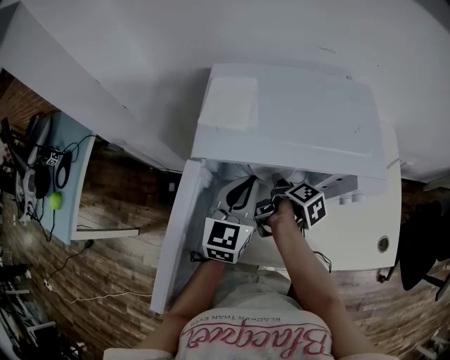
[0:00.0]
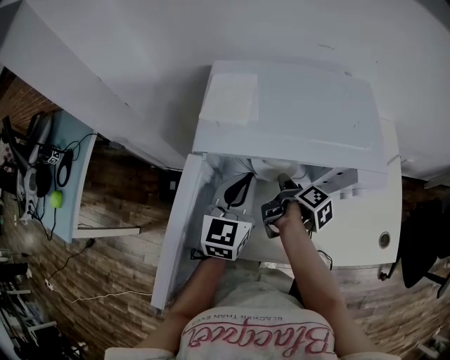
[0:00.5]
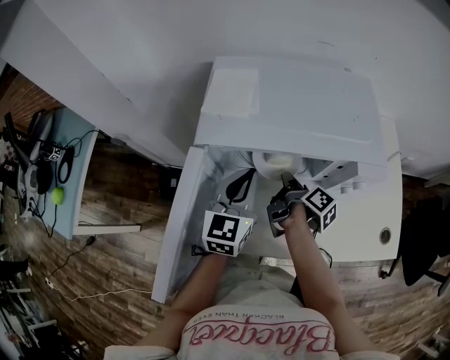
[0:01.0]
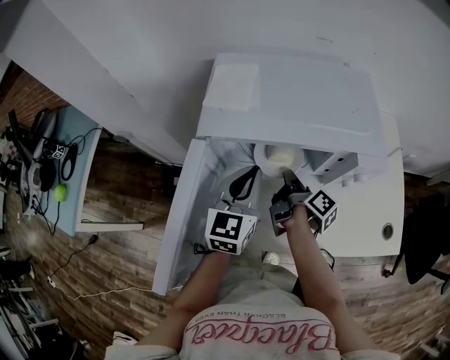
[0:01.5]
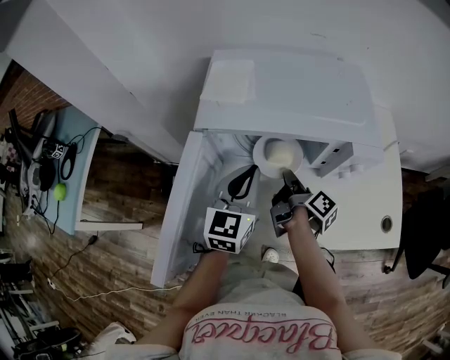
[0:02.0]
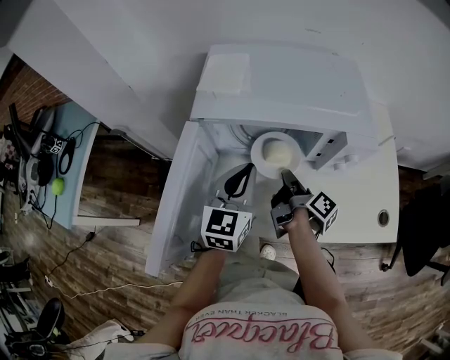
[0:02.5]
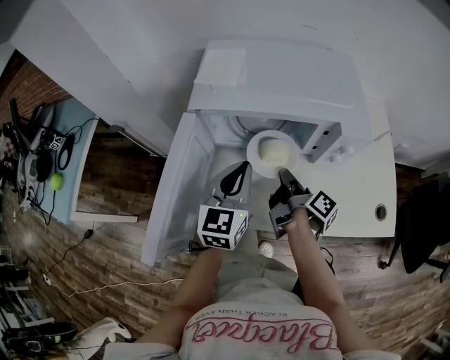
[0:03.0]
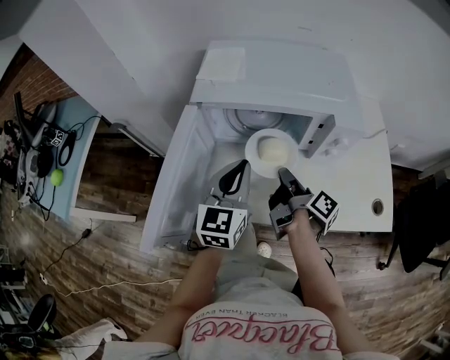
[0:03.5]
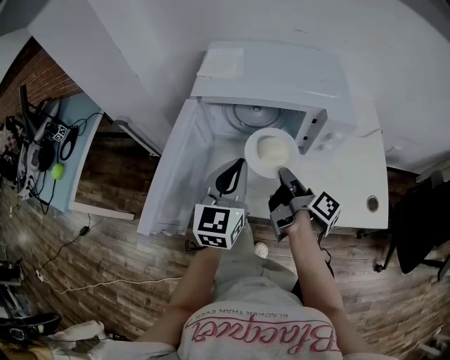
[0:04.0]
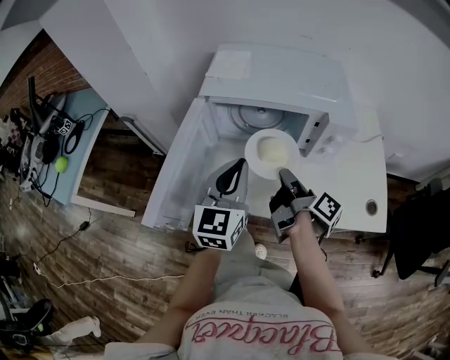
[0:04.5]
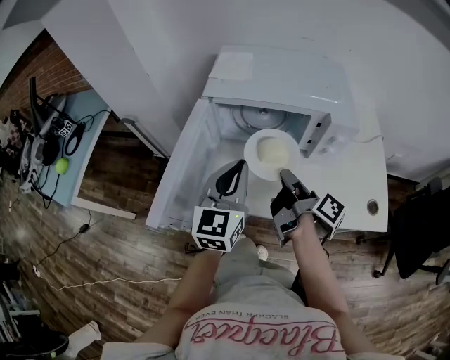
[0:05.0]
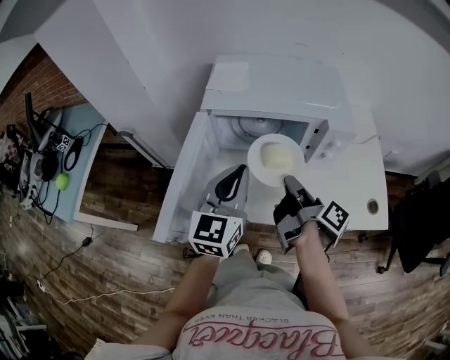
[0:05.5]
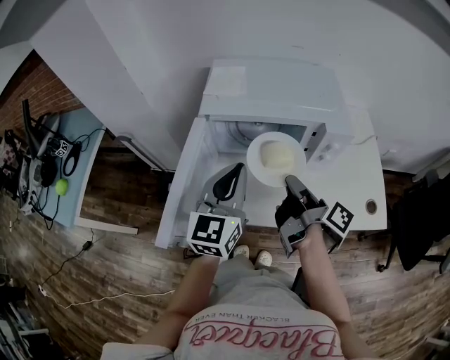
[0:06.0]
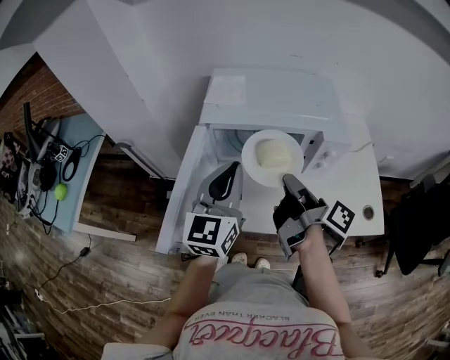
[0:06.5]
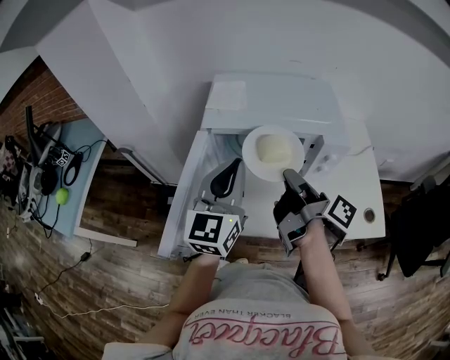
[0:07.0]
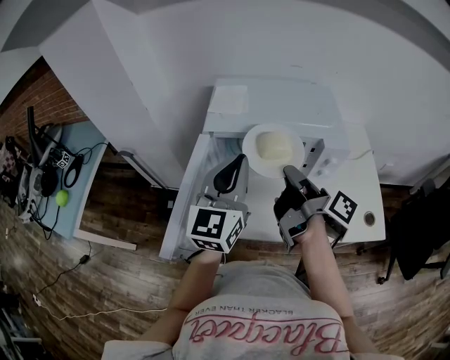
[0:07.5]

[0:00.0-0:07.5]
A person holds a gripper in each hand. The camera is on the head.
0:00.0 to 0:02.0: The right gripper changes place by roughly 5 cm, turns by some 30 degrees, and closes up.
0:02.0 to 0:04.0: The left gripper shifts about 10 cm backward. The right gripper goes approximately 10 cm backward and upward.
0:04.0 to 0:05.5: The right gripper shifts some 5 cm upward.
0:05.5 to 0:07.5: The two grippers go approximately 10 cm upward.

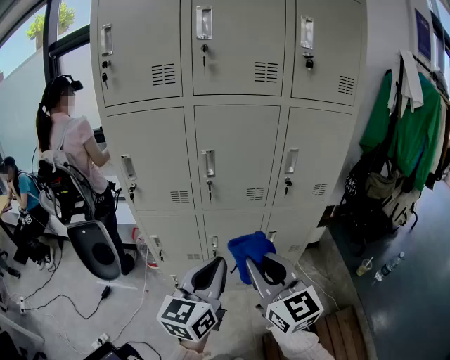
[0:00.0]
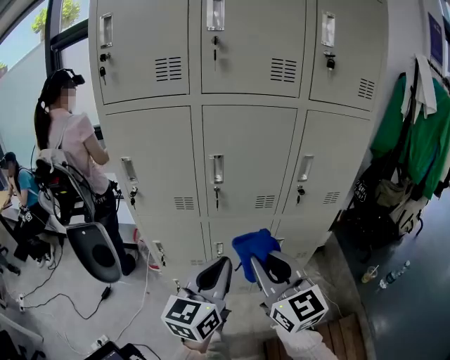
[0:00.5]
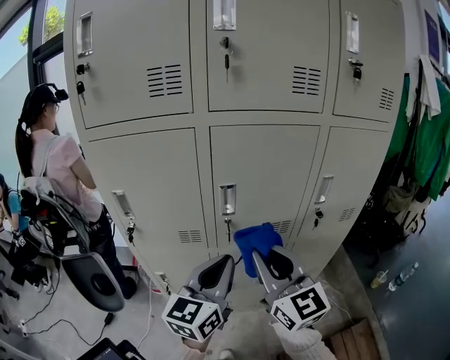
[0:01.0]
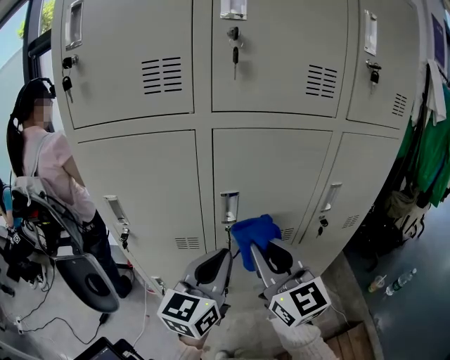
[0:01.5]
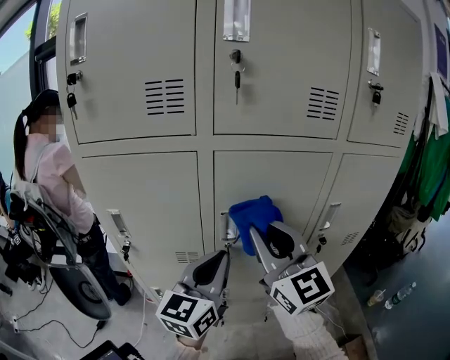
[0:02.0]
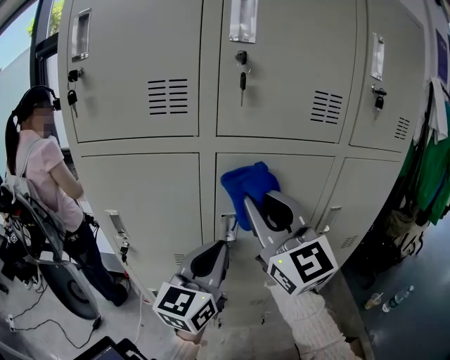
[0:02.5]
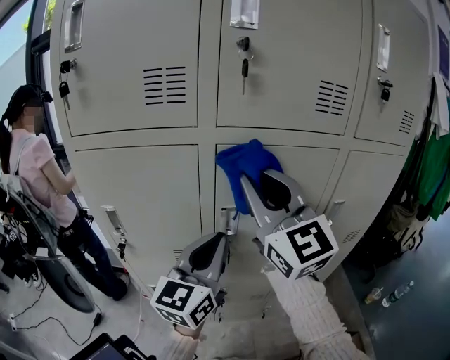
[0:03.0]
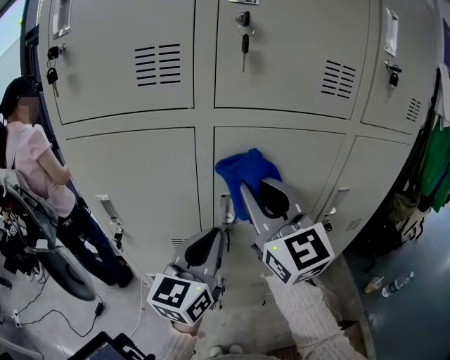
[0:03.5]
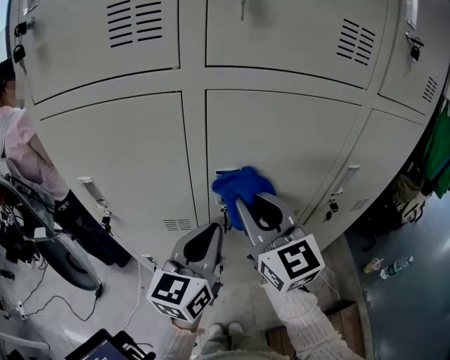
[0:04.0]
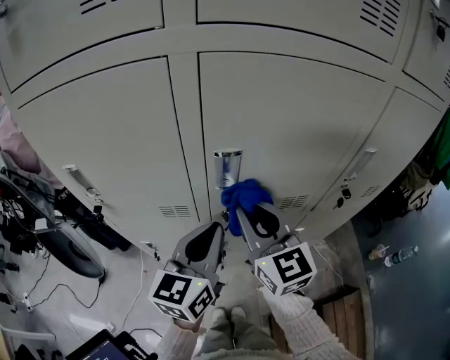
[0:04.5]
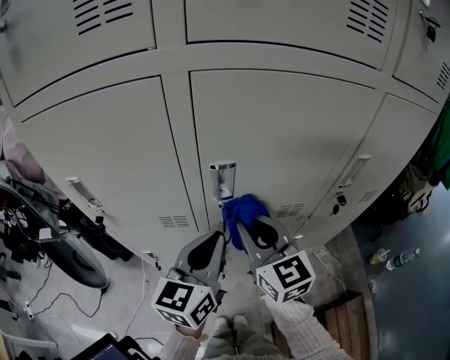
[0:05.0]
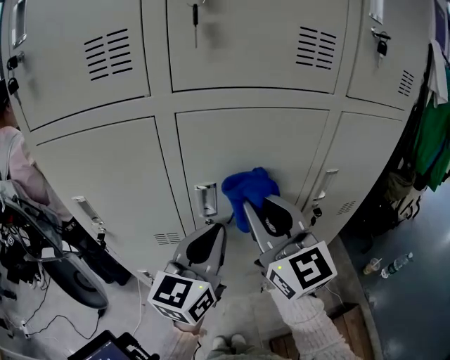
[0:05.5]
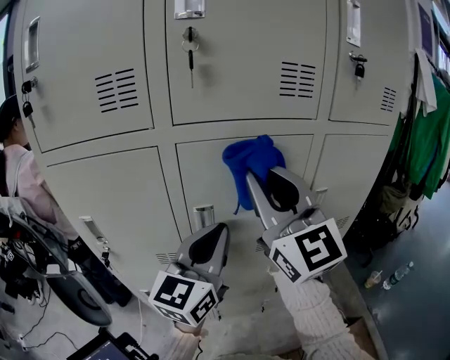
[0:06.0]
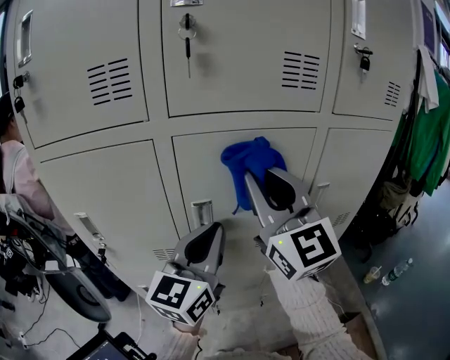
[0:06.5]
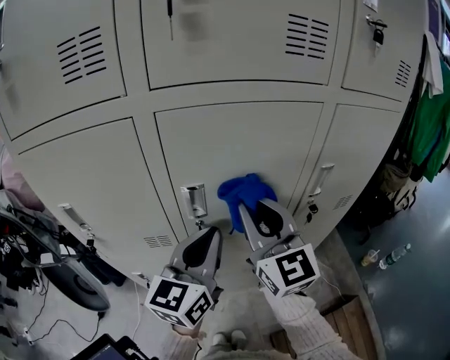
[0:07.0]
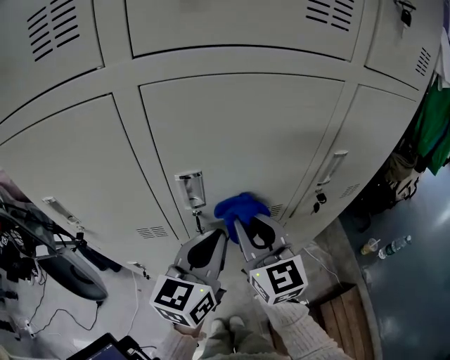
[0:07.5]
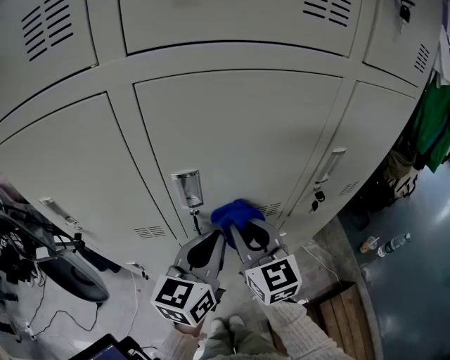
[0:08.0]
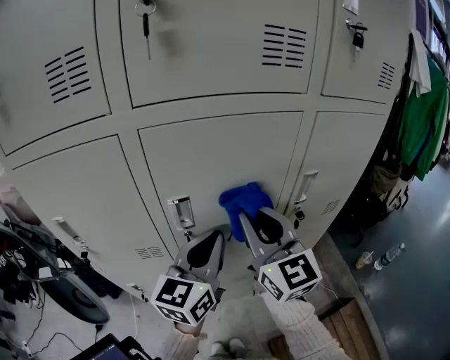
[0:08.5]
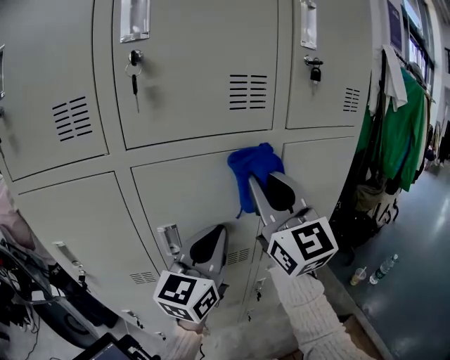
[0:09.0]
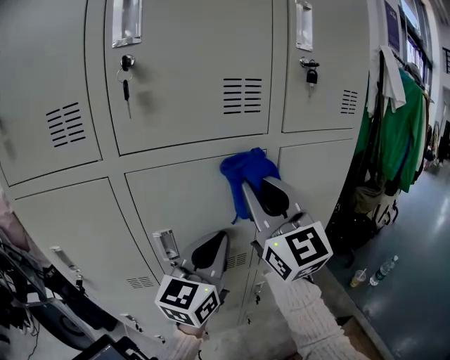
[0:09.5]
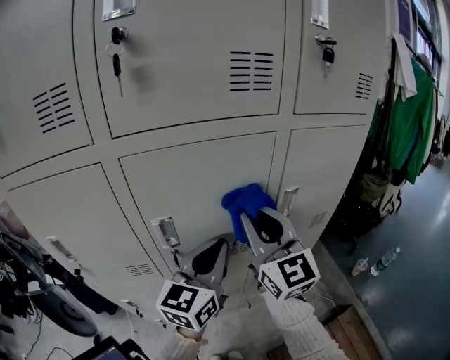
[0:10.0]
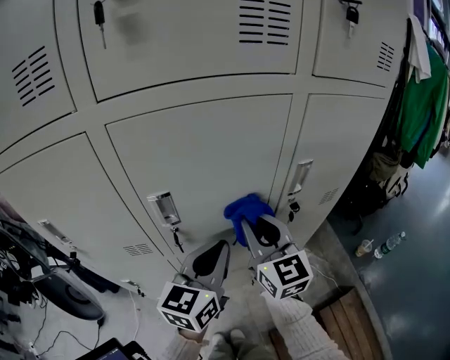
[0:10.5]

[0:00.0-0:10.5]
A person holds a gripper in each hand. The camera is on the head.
0:00.0 to 0:02.0: The right gripper shifts approximately 30 cm forward and upward. Meanwhile the left gripper goes roughly 25 cm forward.
0:02.0 to 0:04.0: The right gripper goes about 10 cm downward and forward, while the left gripper travels downward by approximately 5 cm.
0:04.0 to 0:06.5: Both grippers move upward and to the right, approximately 10 cm.
0:06.5 to 0:08.5: The right gripper goes some 10 cm downward. The left gripper travels downward by approximately 5 cm.
0:08.5 to 0:10.5: The right gripper is displaced downward by roughly 10 cm.

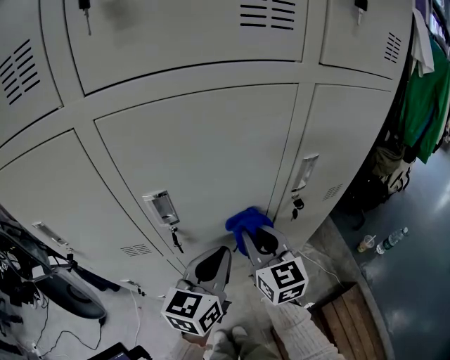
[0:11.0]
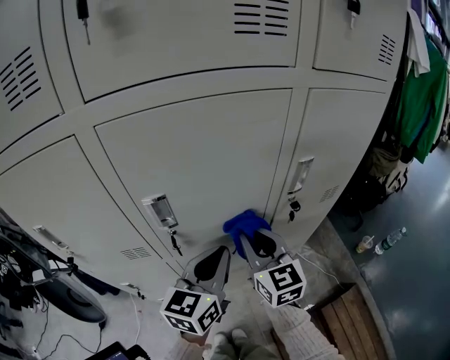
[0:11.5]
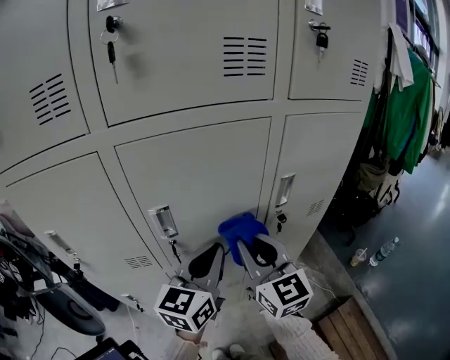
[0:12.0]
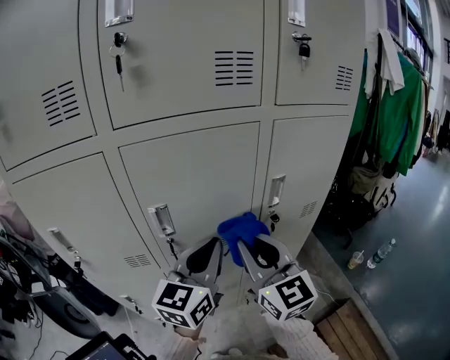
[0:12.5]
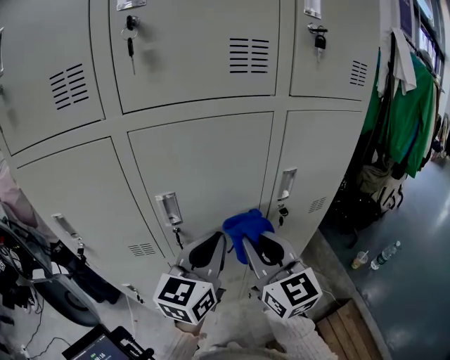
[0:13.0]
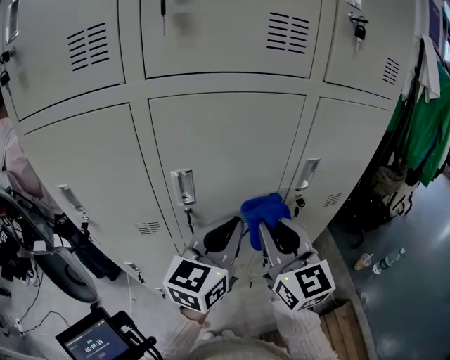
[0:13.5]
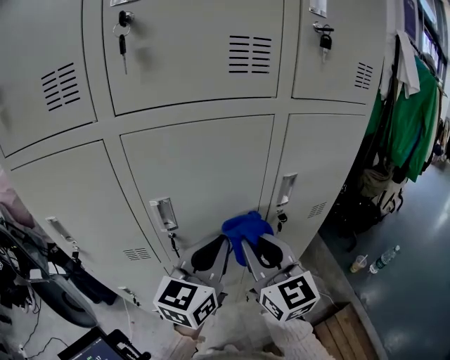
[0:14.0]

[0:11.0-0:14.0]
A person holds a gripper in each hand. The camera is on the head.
0:11.0 to 0:12.5: The left gripper heads upward, covering some 10 cm. The right gripper heads upward and backward, covering about 15 cm.
0:12.5 to 0:14.0: The grippers make only small movements.

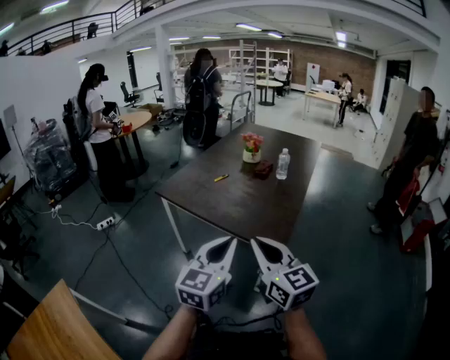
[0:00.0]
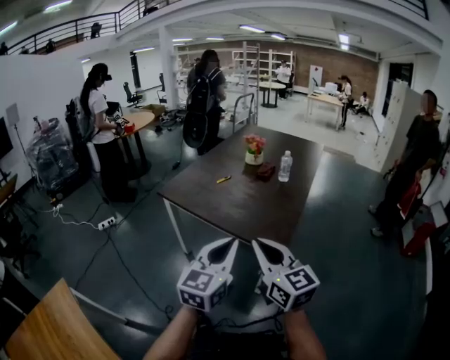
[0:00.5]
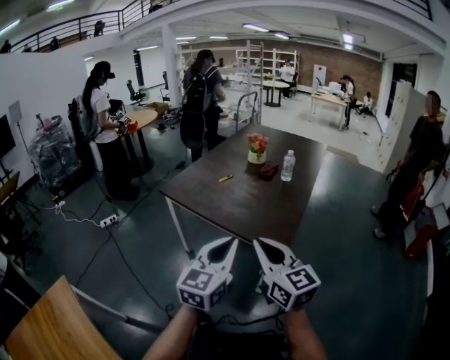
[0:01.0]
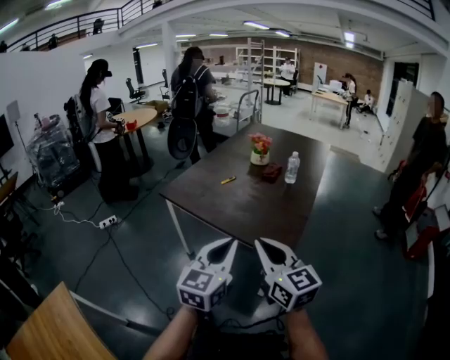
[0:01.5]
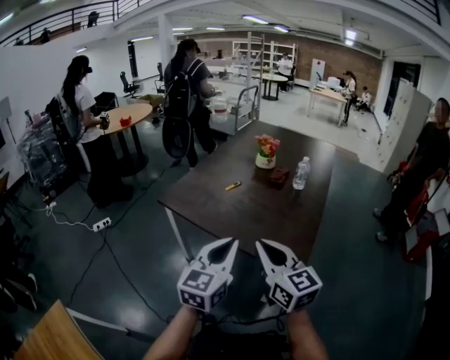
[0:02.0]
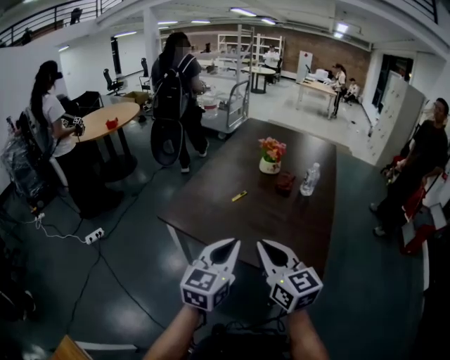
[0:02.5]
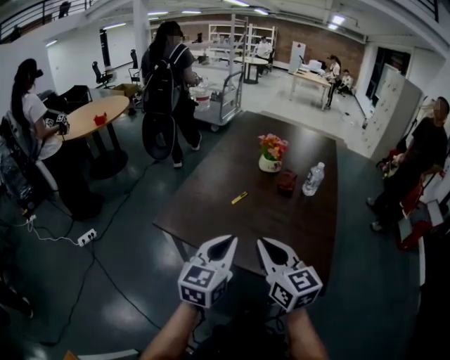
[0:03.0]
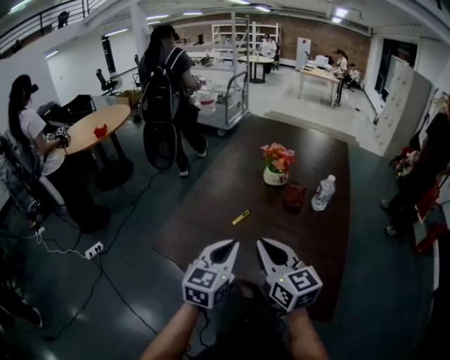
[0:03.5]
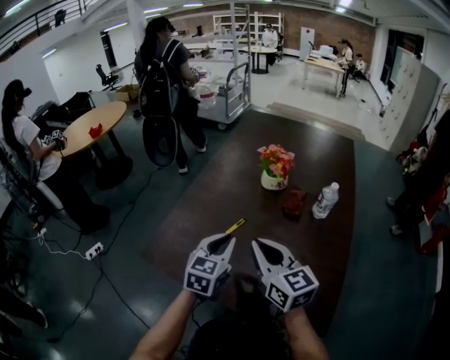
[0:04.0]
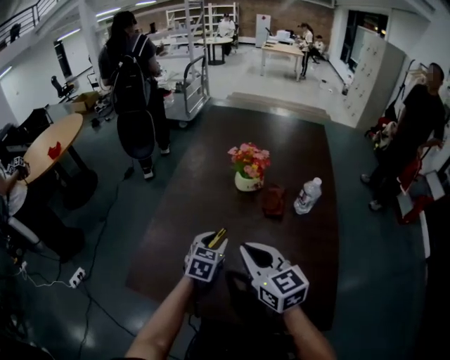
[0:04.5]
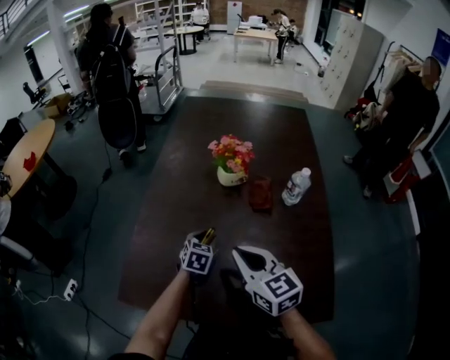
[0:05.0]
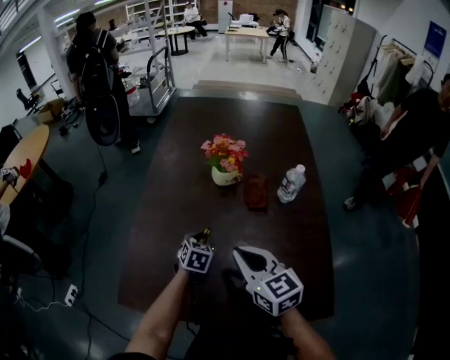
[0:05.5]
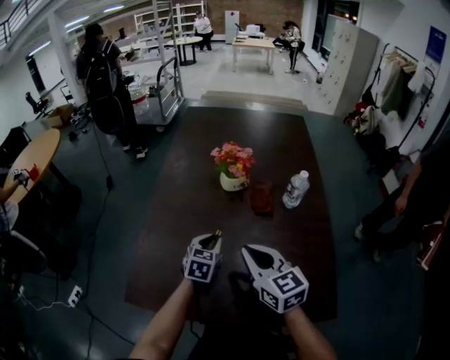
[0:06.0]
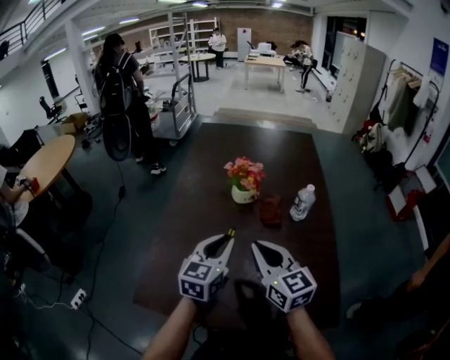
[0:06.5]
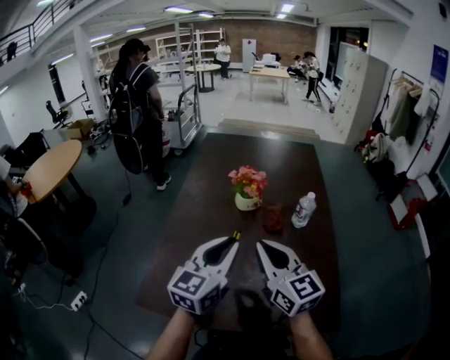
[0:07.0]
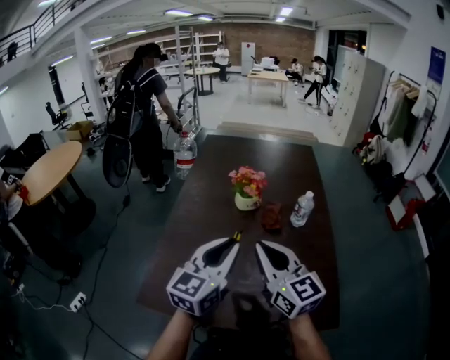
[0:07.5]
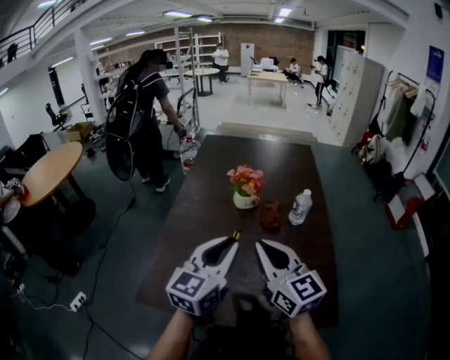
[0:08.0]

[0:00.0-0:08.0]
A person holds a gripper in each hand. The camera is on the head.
0:00.0 to 0:02.0: The right gripper shifts some 15 cm forward. Meanwhile the left gripper is displaced forward and to the left by about 15 cm.
0:02.0 to 0:04.0: The two grippers go some 35 cm forward.
0:04.0 to 0:06.0: The right gripper moves forward, approximately 5 cm. The left gripper heads downward and forward, covering roughly 15 cm.
0:06.0 to 0:08.0: The right gripper travels upward by roughly 10 cm, while the left gripper goes about 25 cm upward and backward, and tips its fingers upward by approximately 40 degrees.
